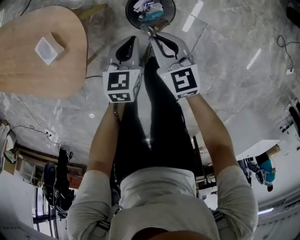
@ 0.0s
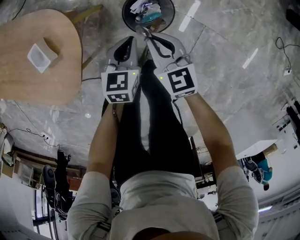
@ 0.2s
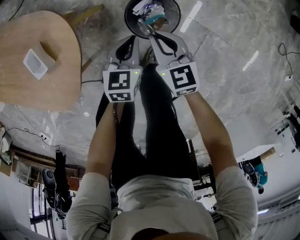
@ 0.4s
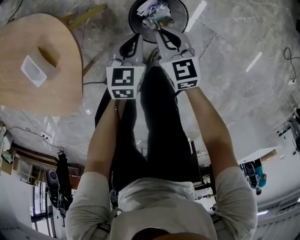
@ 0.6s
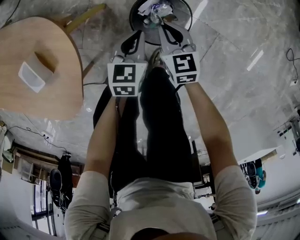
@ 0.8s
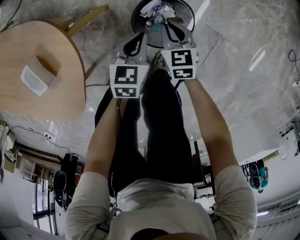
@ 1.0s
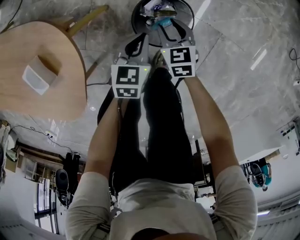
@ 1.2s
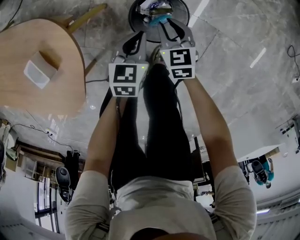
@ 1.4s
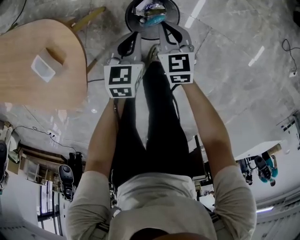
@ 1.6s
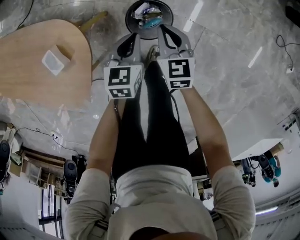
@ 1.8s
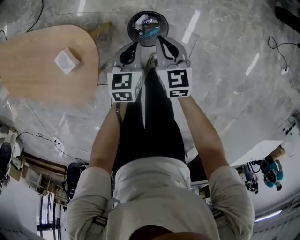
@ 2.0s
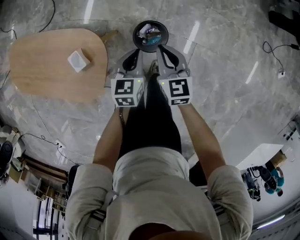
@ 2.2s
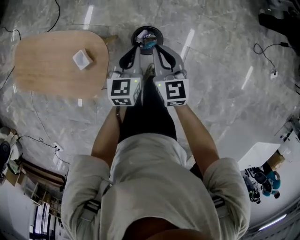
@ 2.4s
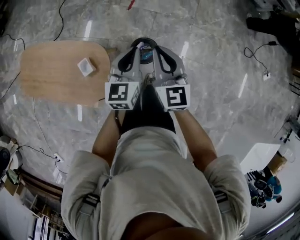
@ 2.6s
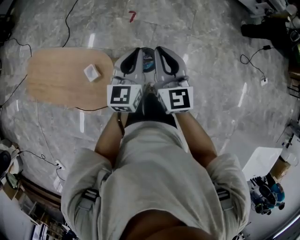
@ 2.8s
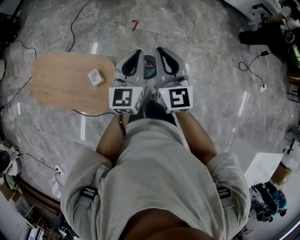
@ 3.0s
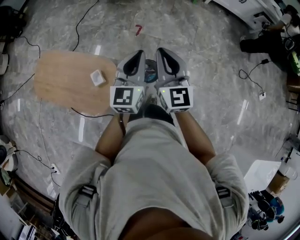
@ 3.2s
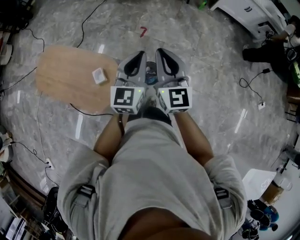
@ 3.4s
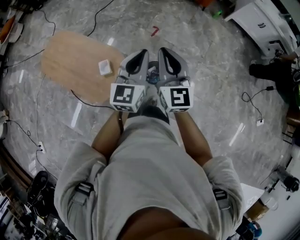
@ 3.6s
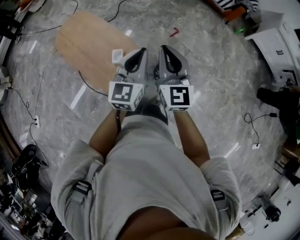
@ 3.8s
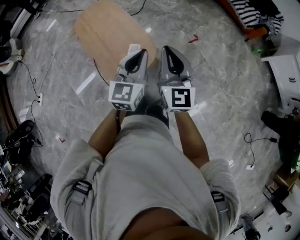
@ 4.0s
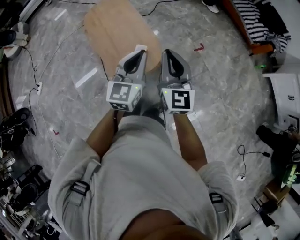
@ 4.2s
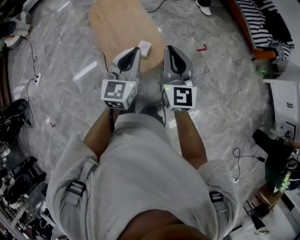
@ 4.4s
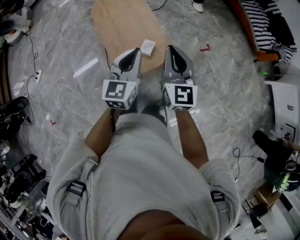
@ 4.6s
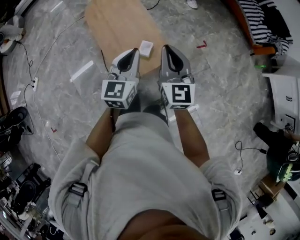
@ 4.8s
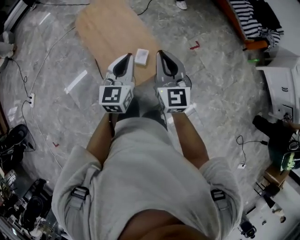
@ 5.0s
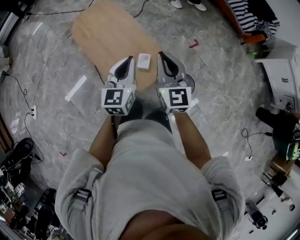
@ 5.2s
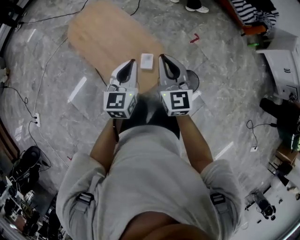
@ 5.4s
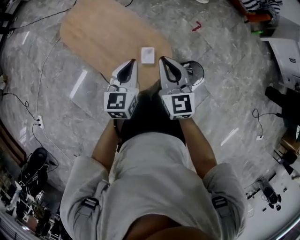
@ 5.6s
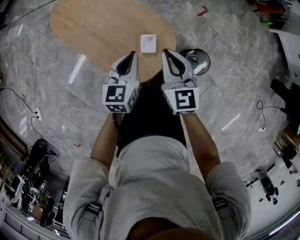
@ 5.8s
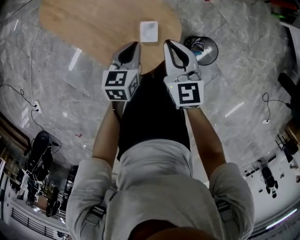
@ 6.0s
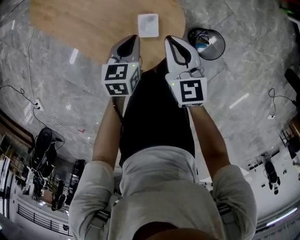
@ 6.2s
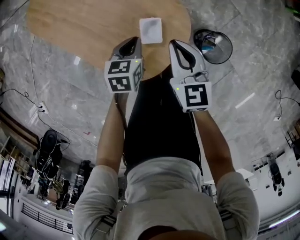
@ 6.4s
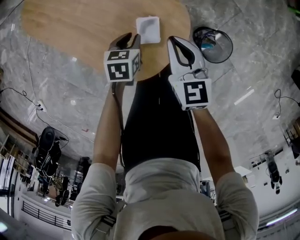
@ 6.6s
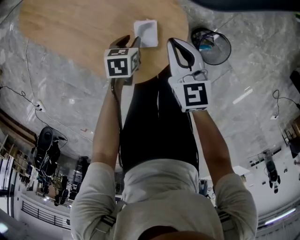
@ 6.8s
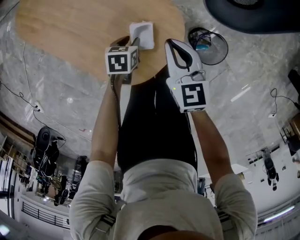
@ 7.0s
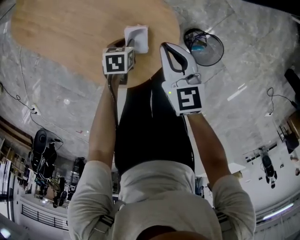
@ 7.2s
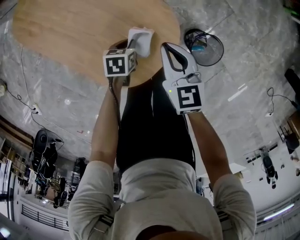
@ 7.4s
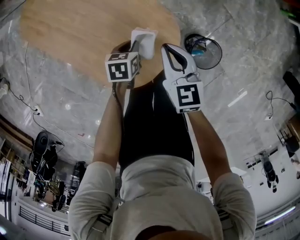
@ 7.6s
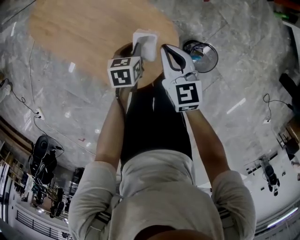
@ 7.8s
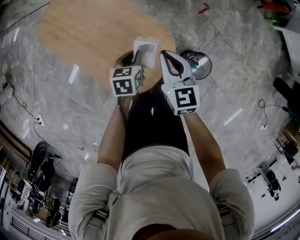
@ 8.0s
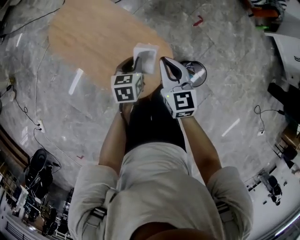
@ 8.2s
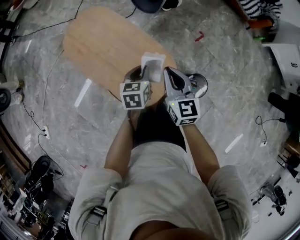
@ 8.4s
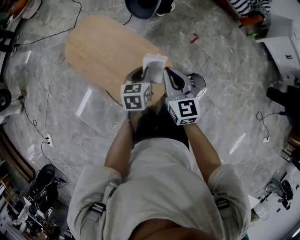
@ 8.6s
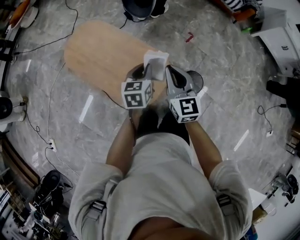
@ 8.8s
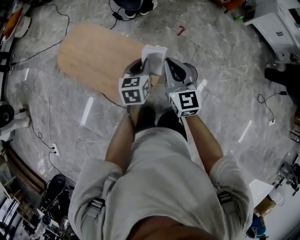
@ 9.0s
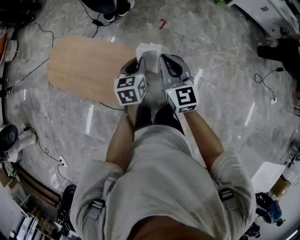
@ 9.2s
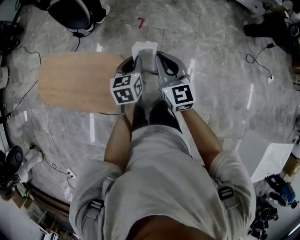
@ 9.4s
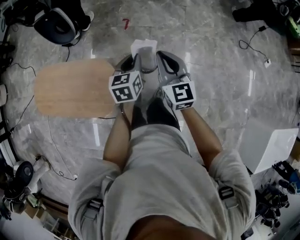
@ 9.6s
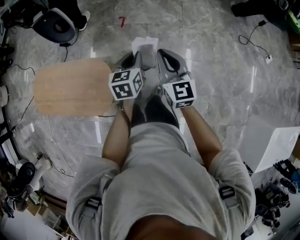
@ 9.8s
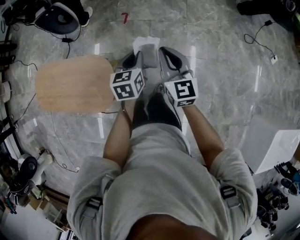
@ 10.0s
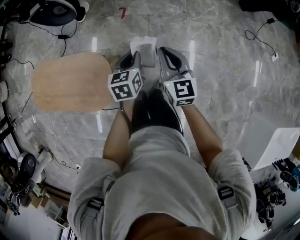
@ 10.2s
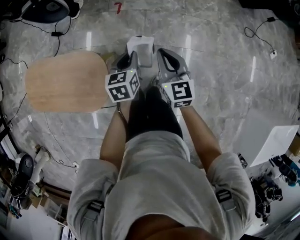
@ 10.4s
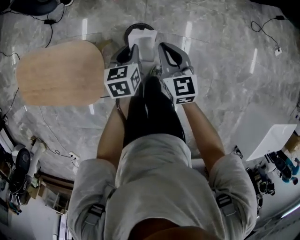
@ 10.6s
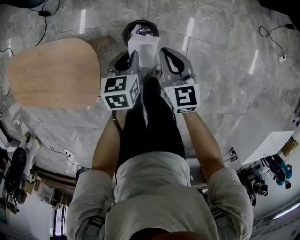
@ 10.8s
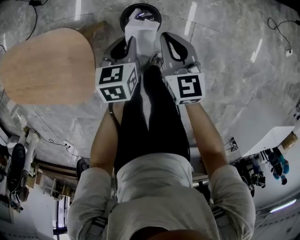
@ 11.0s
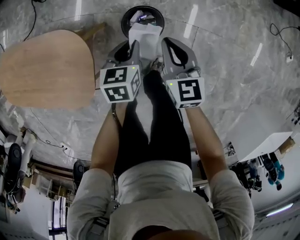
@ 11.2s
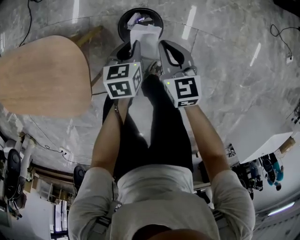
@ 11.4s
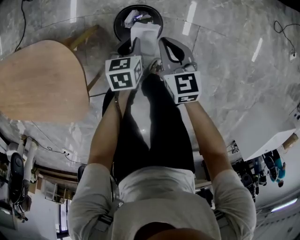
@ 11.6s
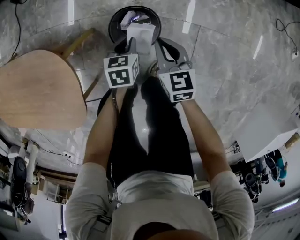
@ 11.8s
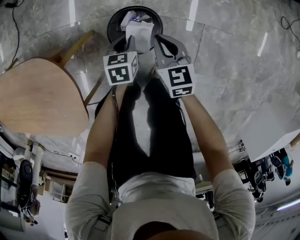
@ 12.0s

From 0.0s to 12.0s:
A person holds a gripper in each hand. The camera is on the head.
From 0.0s to 1.6s: The left gripper moves downward and forward, some 10 cm; the right gripper heads downward and forward, covering some 15 cm, and opens, then closes once more.
From 1.6s to 3.0s: The grippers both shift upward by about 60 cm. The right gripper points its fingers approximately 40 degrees further upward; the left gripper points its fingers about 40 degrees further upward.
From 3.0s to 4.4s: The left gripper ends up about 25 cm from where it was, and rotates roughly 40 degrees; the right gripper ends up about 20 cm from where it was, and swivels roughly 40 degrees.
From 4.4s to 6.0s: The right gripper shifts about 35 cm downward, forward and to the left, and rotates approximately 30 degrees; the left gripper is displaced downward and forward by roughly 35 cm, and rotates some 40 degrees.
From 6.0s to 7.6s: The left gripper heads downward, covering roughly 20 cm, and turns by roughly 30 degrees; the right gripper travels downward by about 10 cm.
From 7.6s to 9.0s: Both grippers move upward, some 35 cm. The right gripper turns by about 30 degrees; the left gripper rotates some 30 degrees.
From 9.0s to 10.4s: The two grippers go some 35 cm to the right. The left gripper changes its angle by roughly 20 degrees, while the right gripper swivels approximately 30 degrees.
From 10.4s to 12.0s: The grippers both shift downward by about 50 cm. The right gripper changes its angle by roughly 20 degrees.

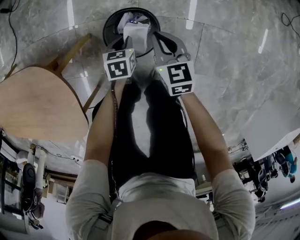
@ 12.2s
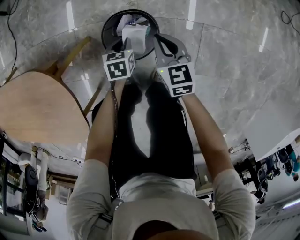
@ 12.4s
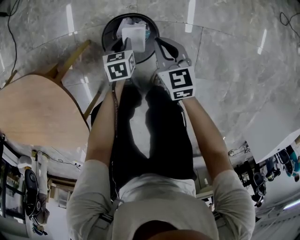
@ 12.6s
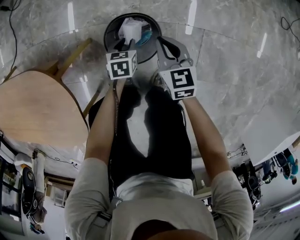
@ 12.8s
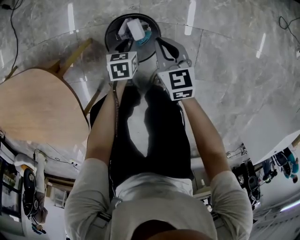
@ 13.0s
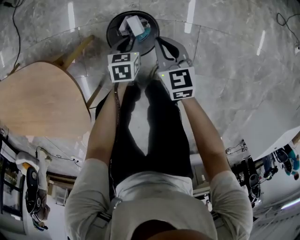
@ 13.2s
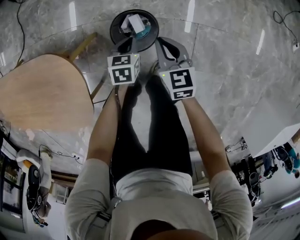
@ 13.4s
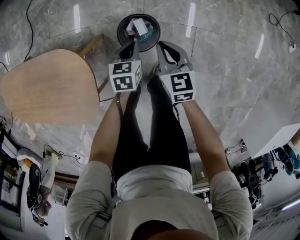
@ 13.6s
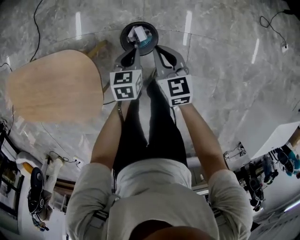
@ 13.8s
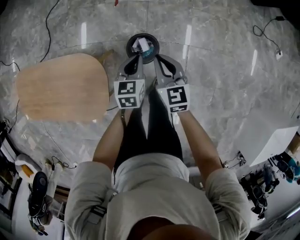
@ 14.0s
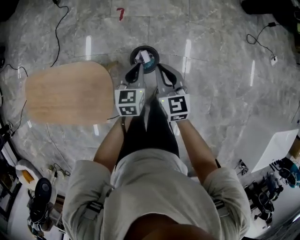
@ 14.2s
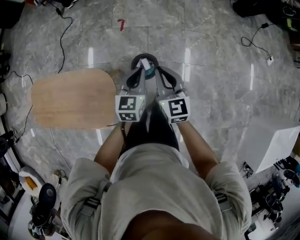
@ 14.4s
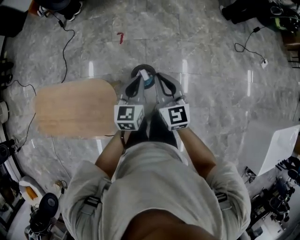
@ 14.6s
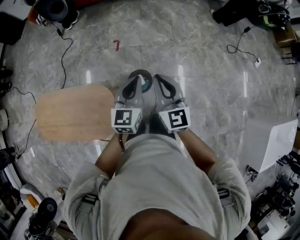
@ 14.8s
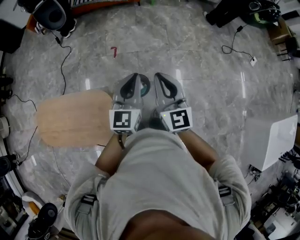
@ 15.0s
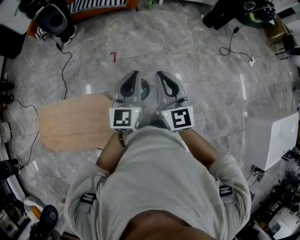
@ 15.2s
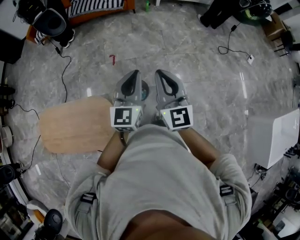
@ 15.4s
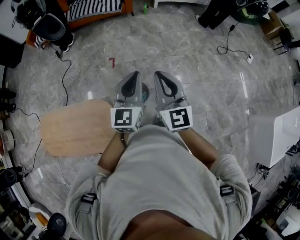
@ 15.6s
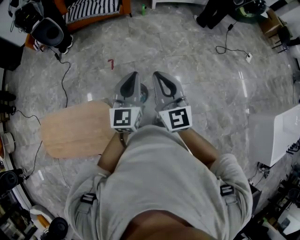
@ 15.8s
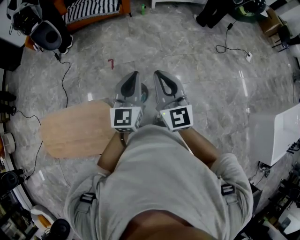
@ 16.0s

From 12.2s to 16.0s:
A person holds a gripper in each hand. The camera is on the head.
From 12.2s to 13.4s: Both grippers travel together upward, approximately 10 cm.
From 13.4s to 14.8s: Both grippers travel together upward, some 60 cm. The right gripper angles its fingers upward, by about 30 degrees; the left gripper points its fingers some 40 degrees further upward.
From 14.8s to 16.0s: Both grippers move upward and to the right, some 10 cm.

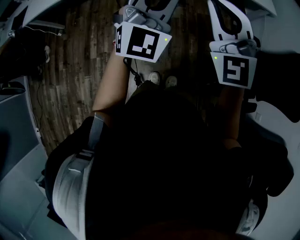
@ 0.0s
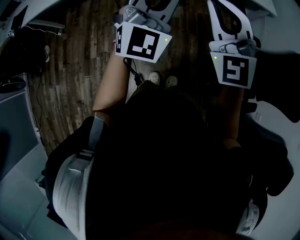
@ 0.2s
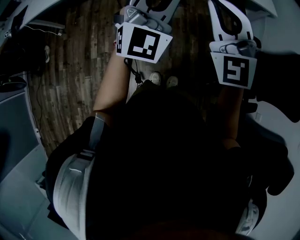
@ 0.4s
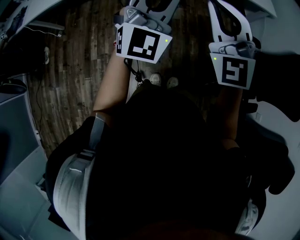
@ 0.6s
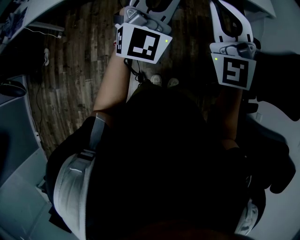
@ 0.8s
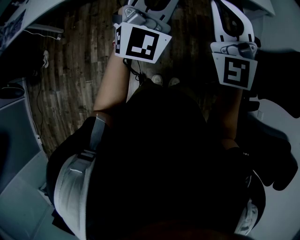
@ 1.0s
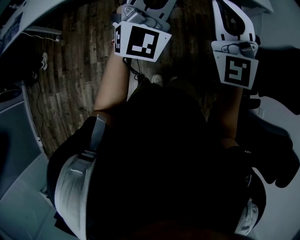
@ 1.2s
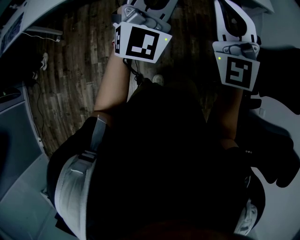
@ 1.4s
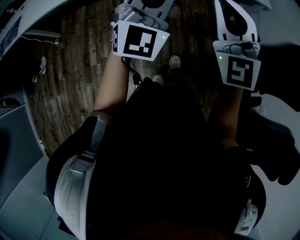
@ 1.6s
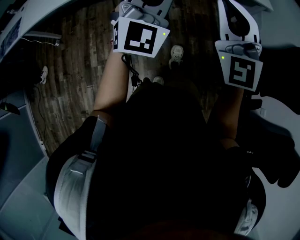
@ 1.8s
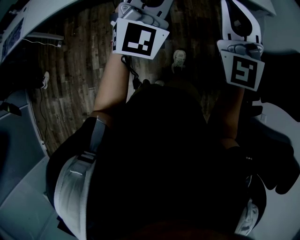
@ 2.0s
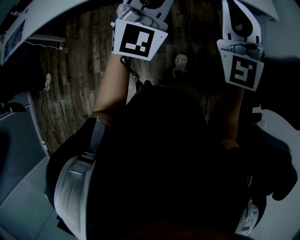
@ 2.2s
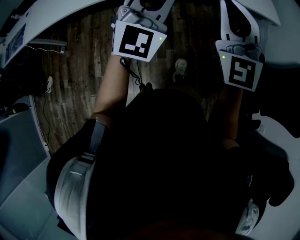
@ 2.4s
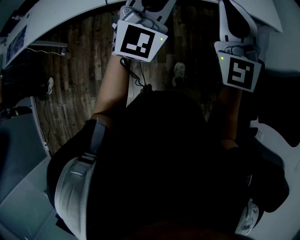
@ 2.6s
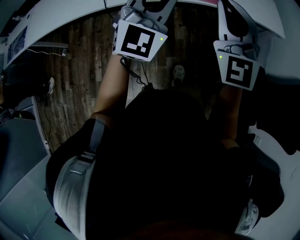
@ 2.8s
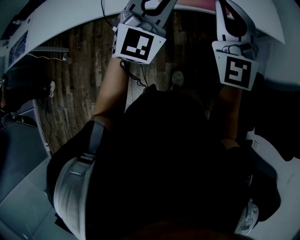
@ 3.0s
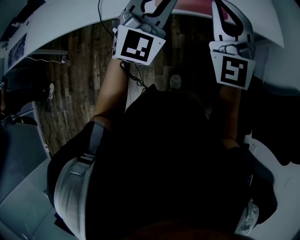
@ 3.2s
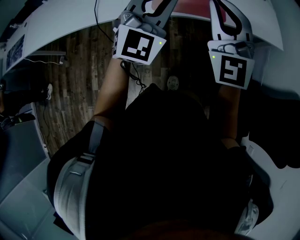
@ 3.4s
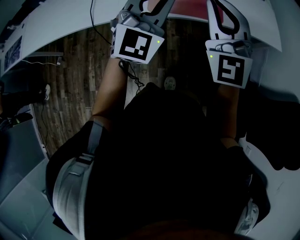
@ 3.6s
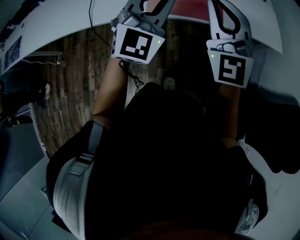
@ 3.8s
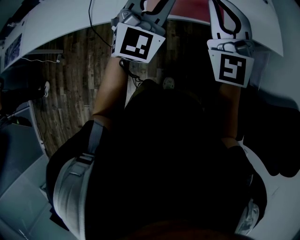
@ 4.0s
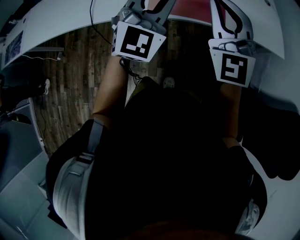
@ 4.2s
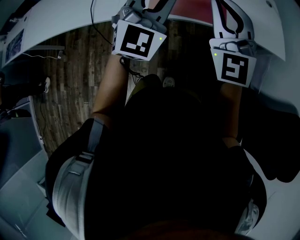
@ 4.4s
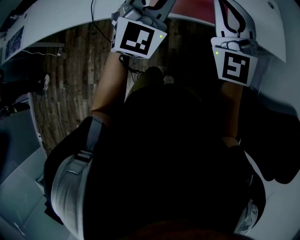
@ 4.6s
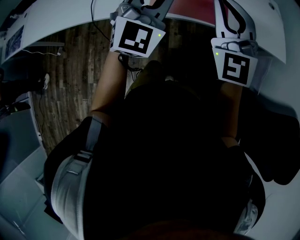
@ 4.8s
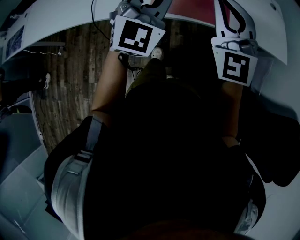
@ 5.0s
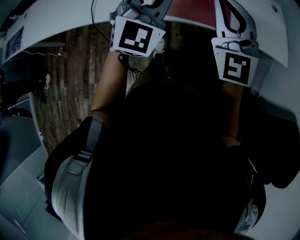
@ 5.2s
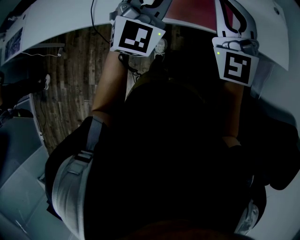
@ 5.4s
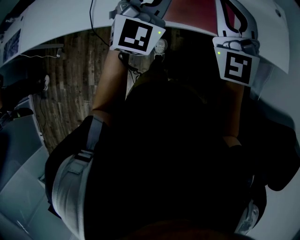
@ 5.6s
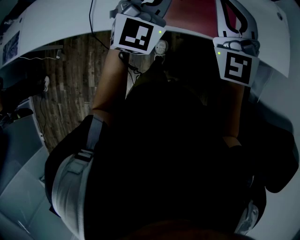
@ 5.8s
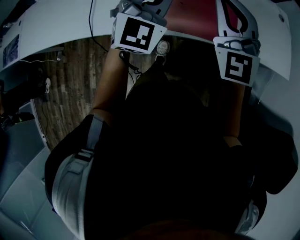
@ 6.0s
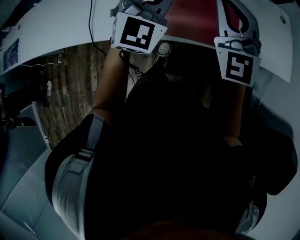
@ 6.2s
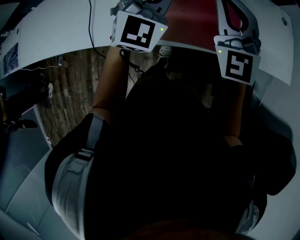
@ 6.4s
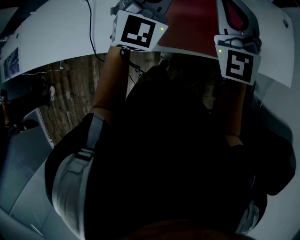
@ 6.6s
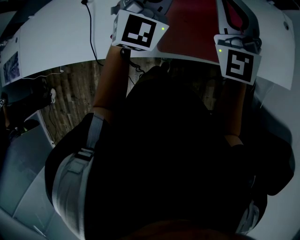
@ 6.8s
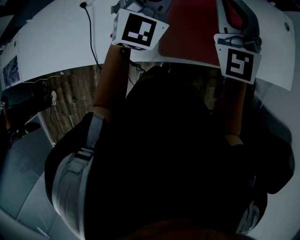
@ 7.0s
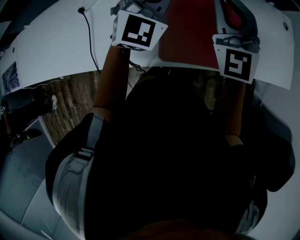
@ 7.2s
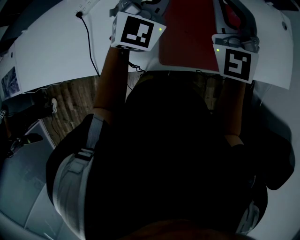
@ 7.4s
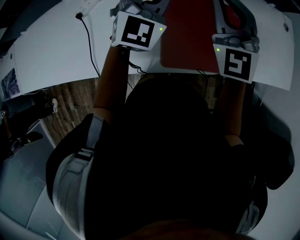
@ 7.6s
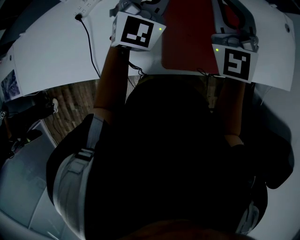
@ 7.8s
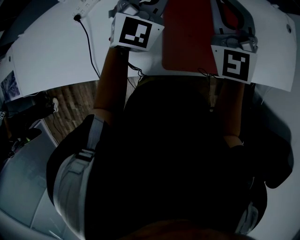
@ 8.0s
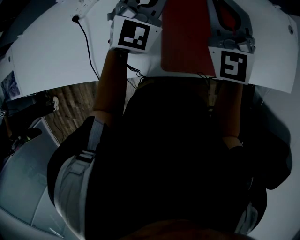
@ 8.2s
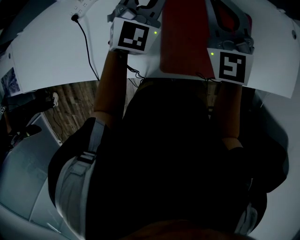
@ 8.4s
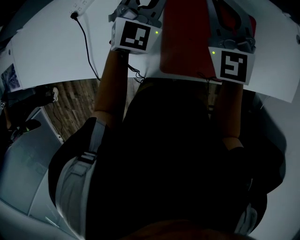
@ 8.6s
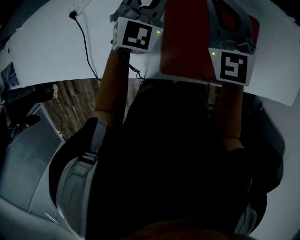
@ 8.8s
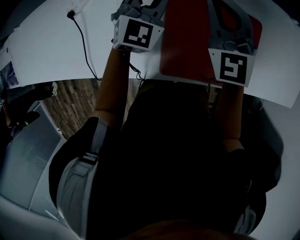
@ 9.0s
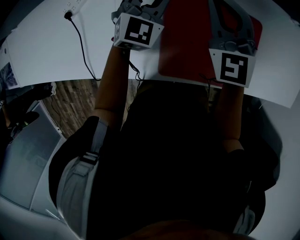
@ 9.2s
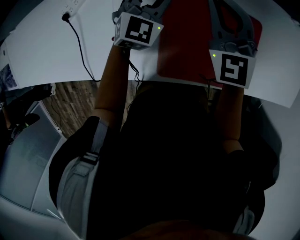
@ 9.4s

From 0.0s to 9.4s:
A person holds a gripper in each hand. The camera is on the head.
From 0.0s to 1.6s: The left gripper moves to the left, some 5 cm.
From 1.6s to 3.2s: Both grippers travel together forward, approximately 30 cm.
From 3.2s to 4.8s: Both grippers move forward, about 10 cm.
From 4.8s to 6.2s: The two grippers go about 20 cm forward.
From 6.2s to 7.8s: Both grippers travel together forward, approximately 20 cm.
From 7.8s to 9.4s: Both grippers travel together downward and forward, some 15 cm. The left gripper opens.
